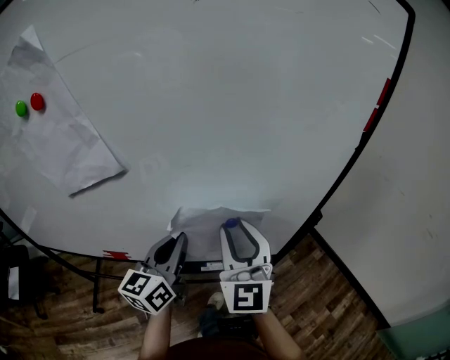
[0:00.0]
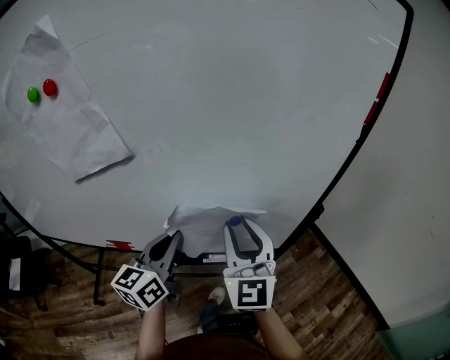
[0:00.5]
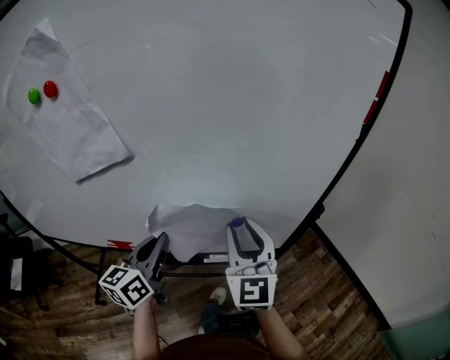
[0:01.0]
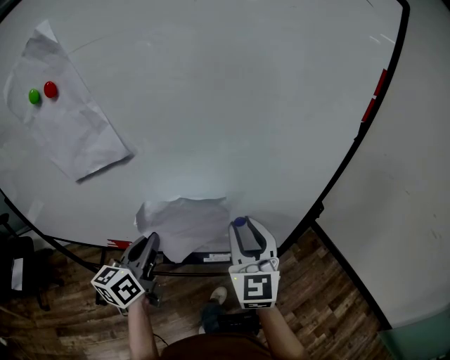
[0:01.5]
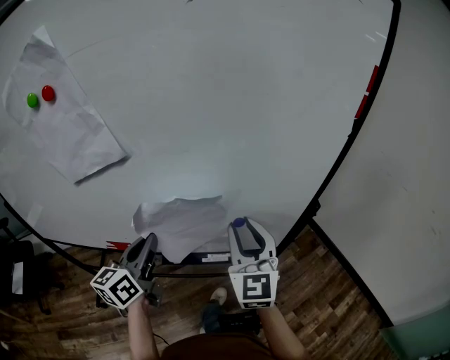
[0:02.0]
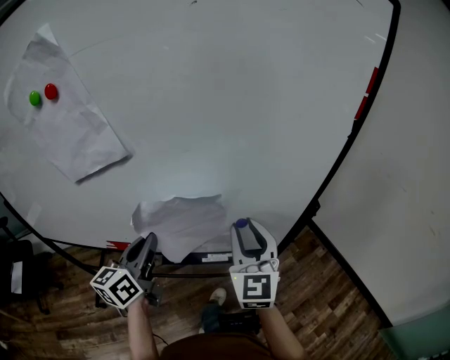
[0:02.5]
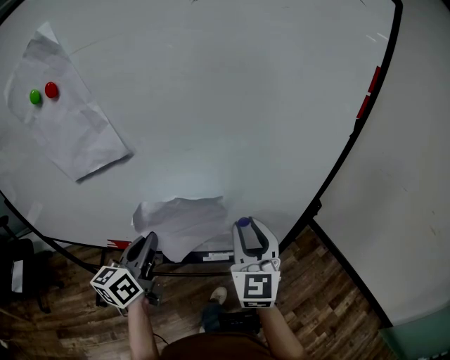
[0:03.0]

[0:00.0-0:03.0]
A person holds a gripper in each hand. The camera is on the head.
0:00.0 to 0:01.5: The left gripper shifts some 5 cm to the left.
0:01.5 to 0:03.0: The grippers make only small movements.

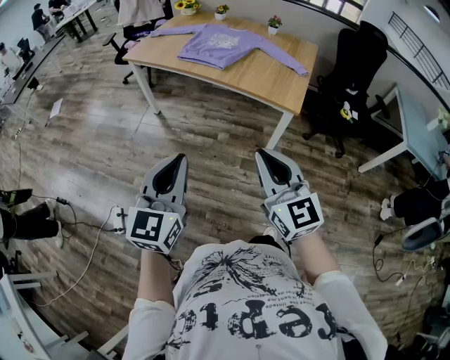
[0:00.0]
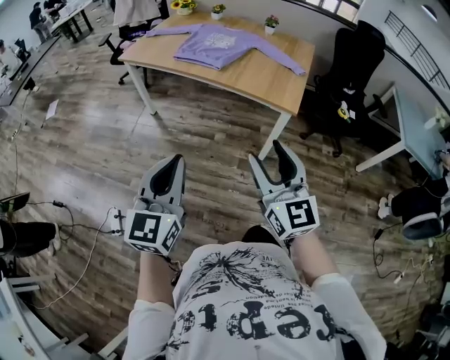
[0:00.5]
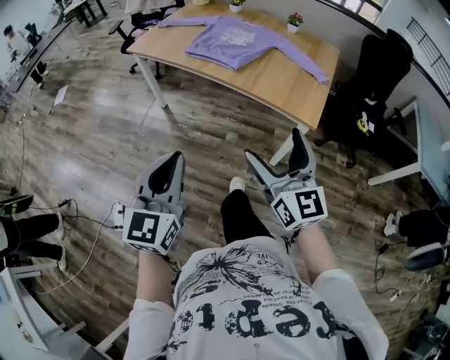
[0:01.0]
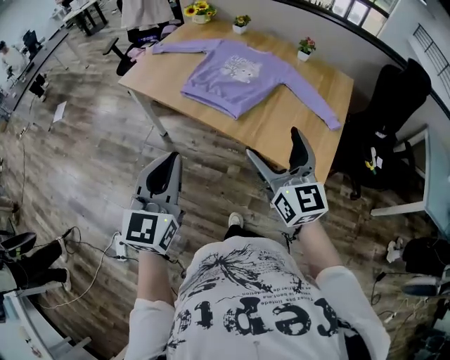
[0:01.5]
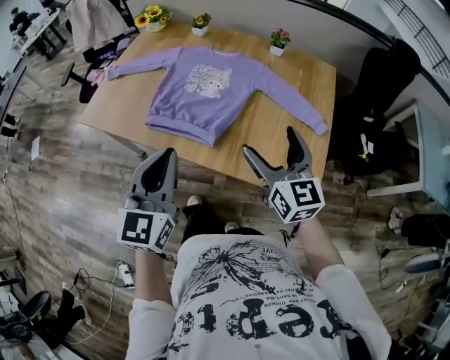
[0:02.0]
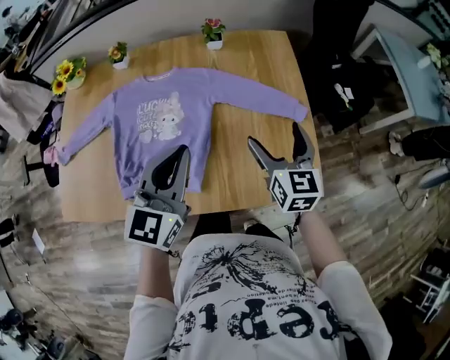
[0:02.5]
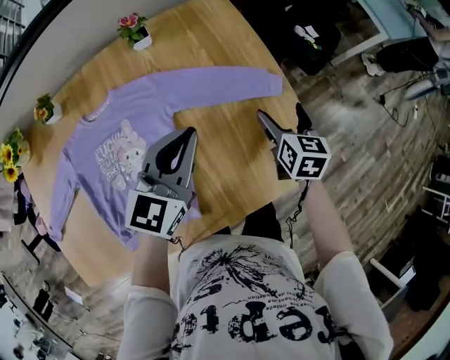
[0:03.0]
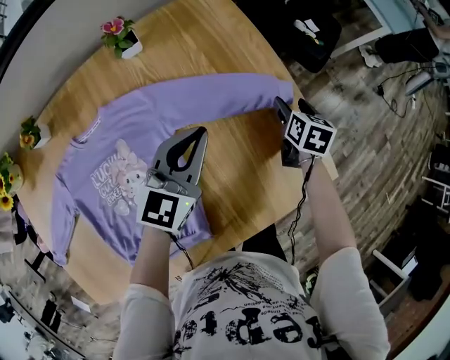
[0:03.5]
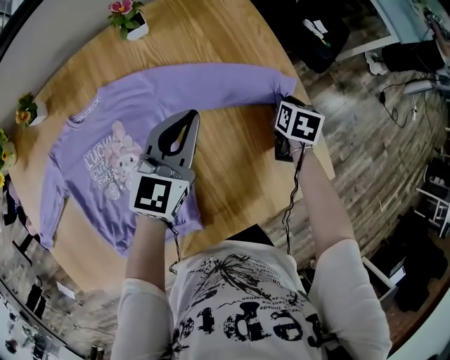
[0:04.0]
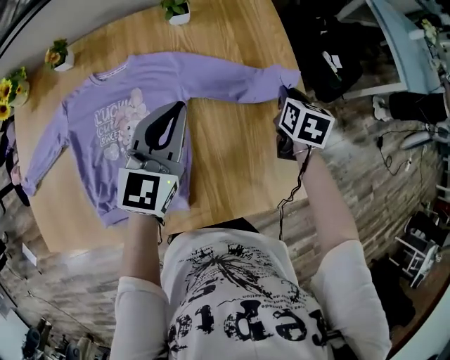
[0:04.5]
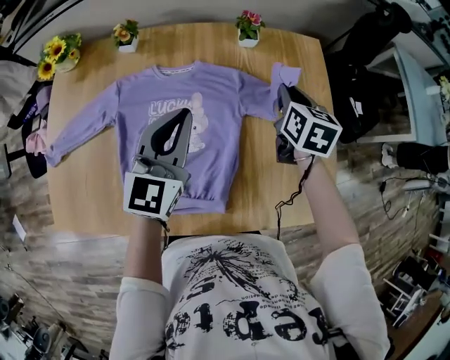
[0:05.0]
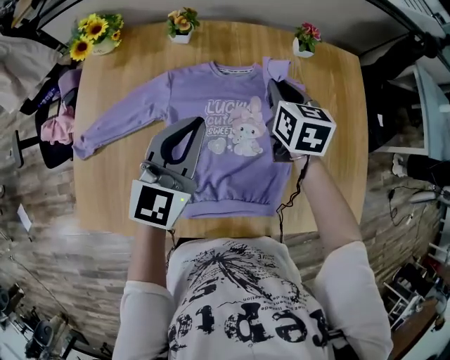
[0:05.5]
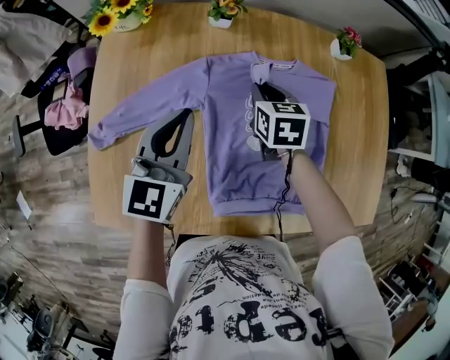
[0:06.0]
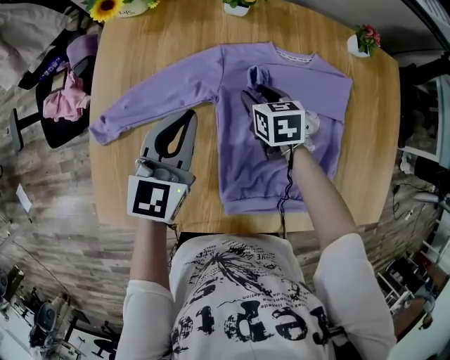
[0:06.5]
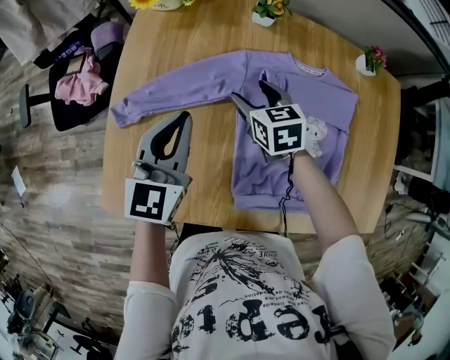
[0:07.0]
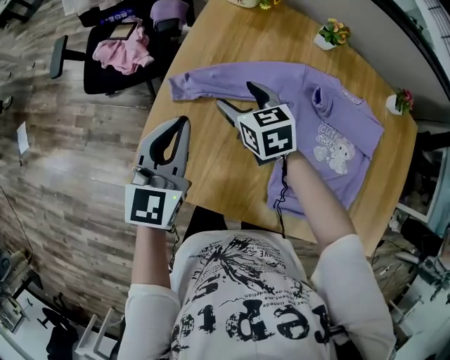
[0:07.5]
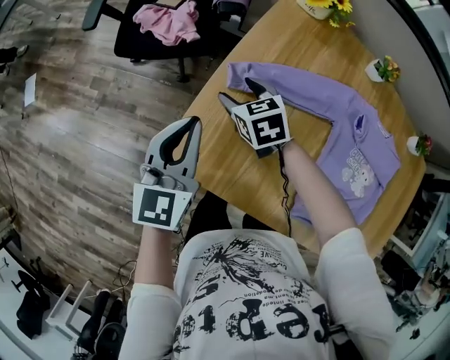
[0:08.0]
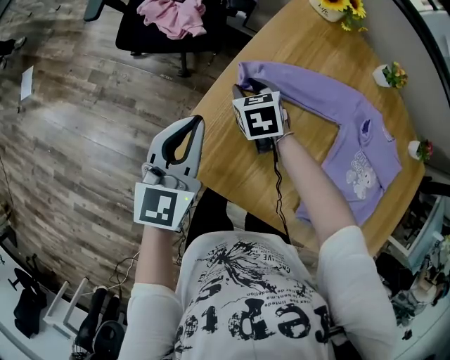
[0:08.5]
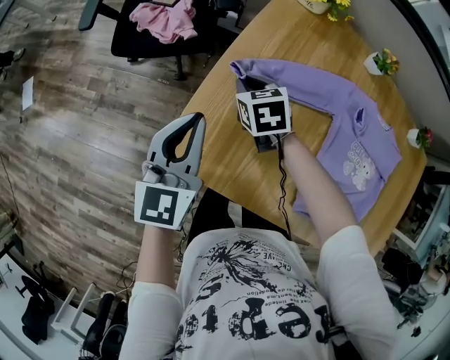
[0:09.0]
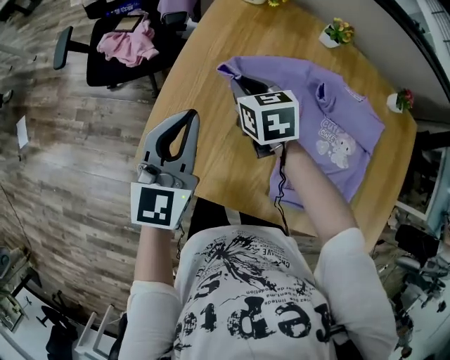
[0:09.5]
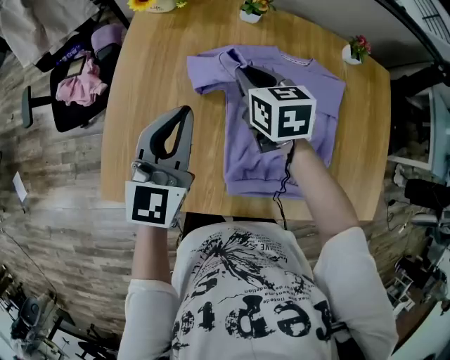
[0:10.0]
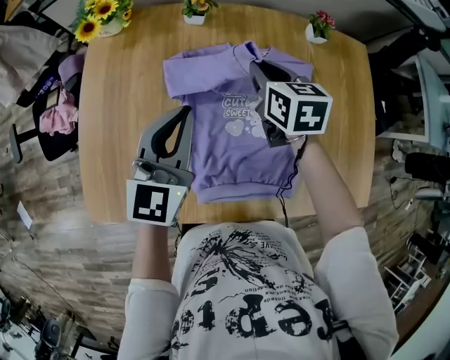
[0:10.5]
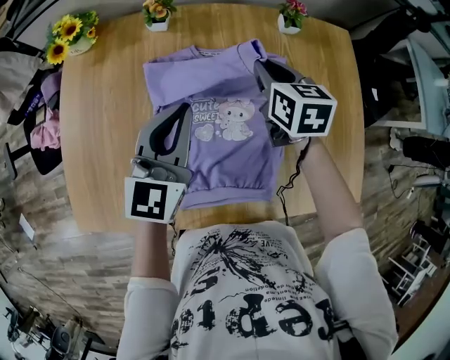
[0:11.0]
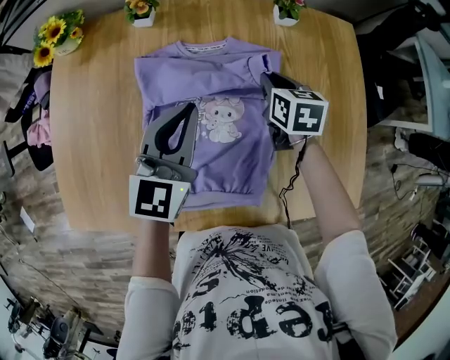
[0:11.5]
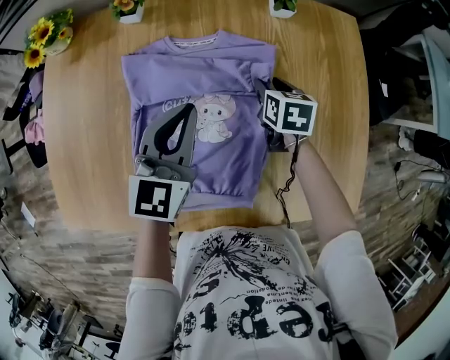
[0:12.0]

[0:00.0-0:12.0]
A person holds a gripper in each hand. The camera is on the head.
0:00.0 to 0:02.0: Both grippers are carried forward, about 60 cm. The right gripper opens up.
0:02.0 to 0:04.0: The left gripper changes place by about 50 cm, and swivels roughly 60 degrees, while the right gripper moves approximately 50 cm, tilts its fingers some 50 degrees downward, and closes up.
0:04.0 to 0:06.0: The pair of grippers is taken some 60 cm. The left gripper swivels some 30 degrees, while the right gripper swivels roughly 50 degrees.
0:06.0 to 0:08.0: The right gripper goes up and down, approximately 10 cm each way, reversing 2 times, rotates some 50 degrees, and opens its fingers. Meanwhile the left gripper changes place by about 35 cm, and swivels some 30 degrees.
0:08.0 to 0:10.0: The left gripper changes place by approximately 30 cm, and changes its angle by some 30 degrees. The right gripper changes place by approximately 35 cm, turns by roughly 40 degrees, and closes.
0:10.0 to 0:12.0: Both grippers travel together to the right, some 35 cm. The right gripper rotates some 30 degrees.

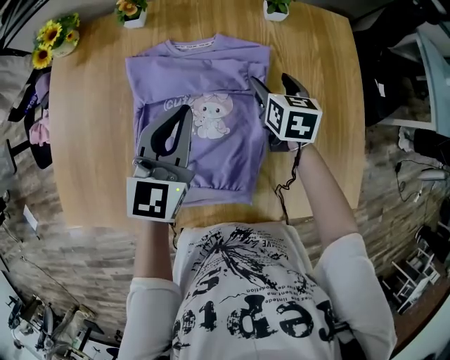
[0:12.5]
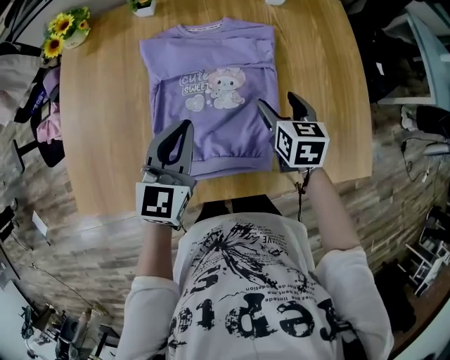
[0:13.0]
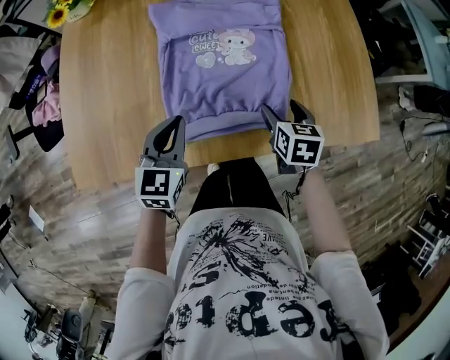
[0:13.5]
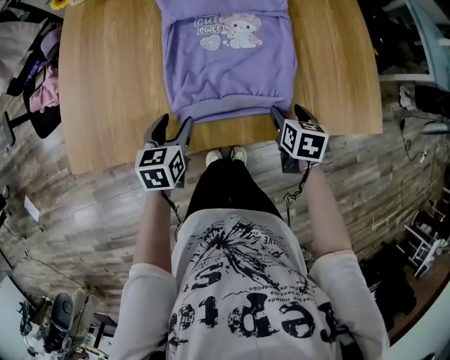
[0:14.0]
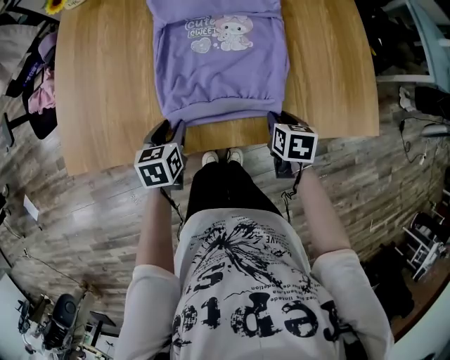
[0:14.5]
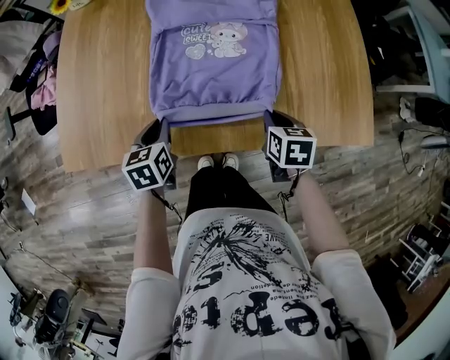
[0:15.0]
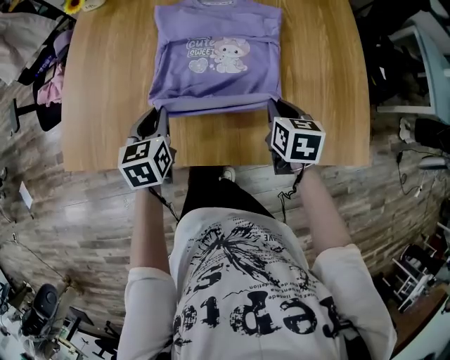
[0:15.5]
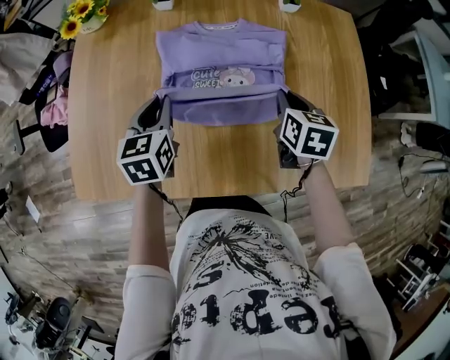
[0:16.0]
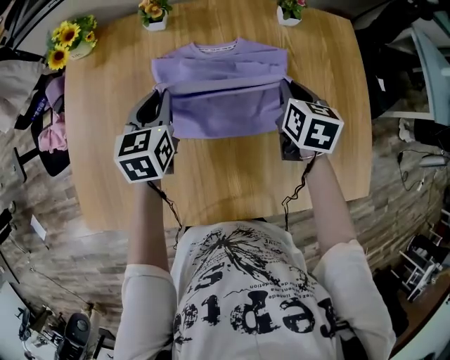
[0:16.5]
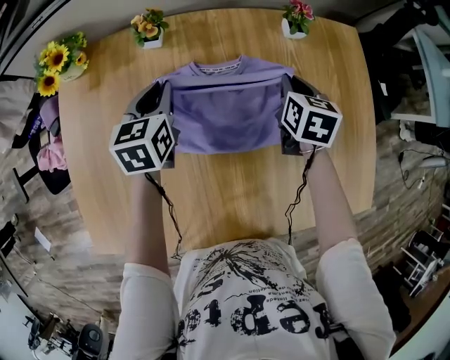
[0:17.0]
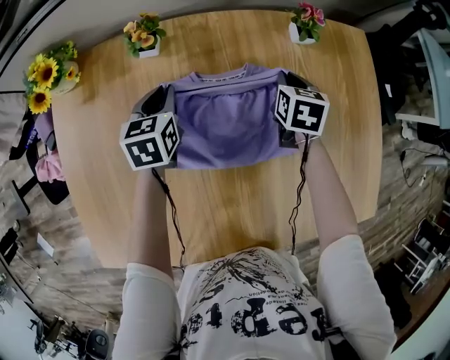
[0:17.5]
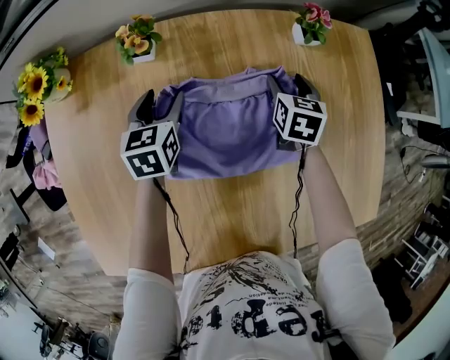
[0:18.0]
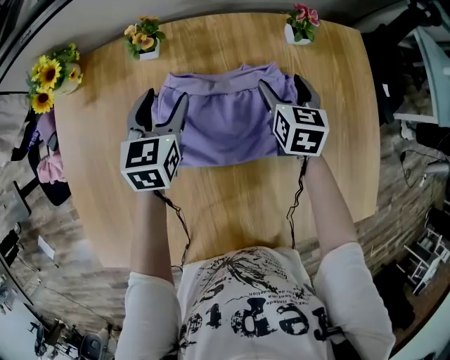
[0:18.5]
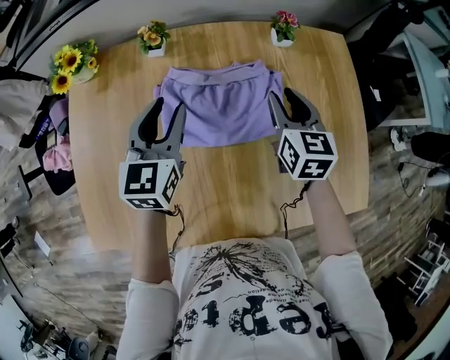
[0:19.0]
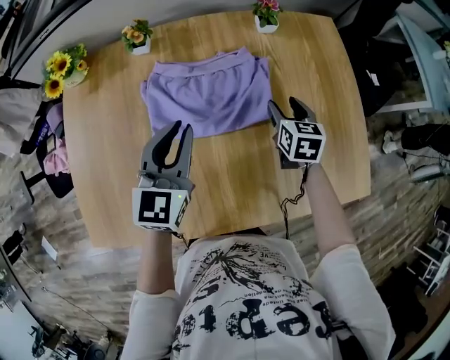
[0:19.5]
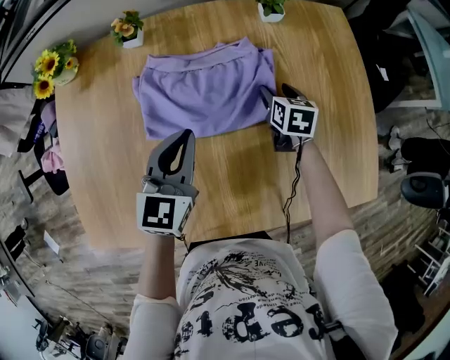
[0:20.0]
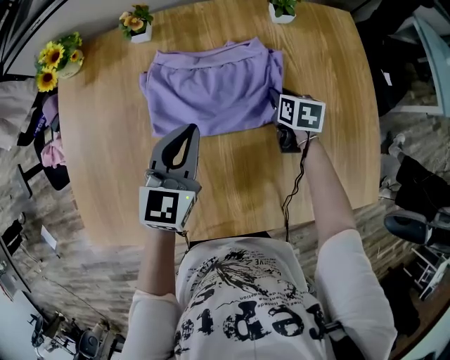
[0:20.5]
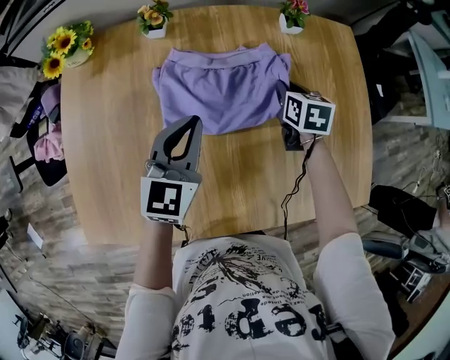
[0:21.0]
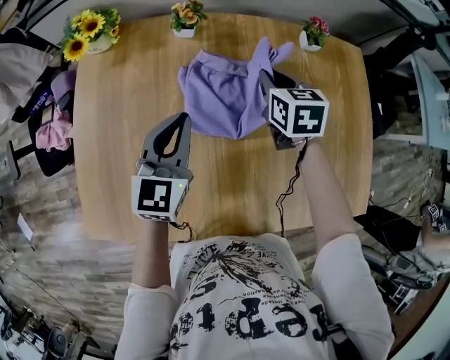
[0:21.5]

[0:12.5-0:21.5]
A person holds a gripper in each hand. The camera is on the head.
0:12.5 to 0:14.5: The left gripper shifts approximately 35 cm backward, downward and to the left, tips its fingers downward by roughly 40 degrees, and opens up, while the right gripper shifts approximately 35 cm backward, rotates roughly 20 degrees, and closes its fingers.
0:14.5 to 0:17.0: Both grippers are carried forward, roughly 40 cm. The left gripper closes up.
0:17.0 to 0:19.5: The left gripper is displaced backward, to the right and upward by some 20 cm, swivels about 30 degrees, and opens, then closes once more, while the right gripper goes about 10 cm backward and to the right, and opens its fingers.
0:19.5 to 0:21.5: The left gripper heads to the left, covering some 10 cm; the right gripper is displaced to the left by about 20 cm, and closes its fingers.

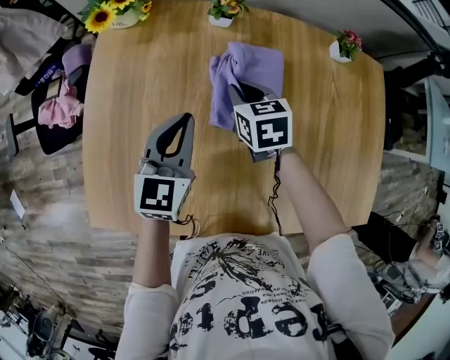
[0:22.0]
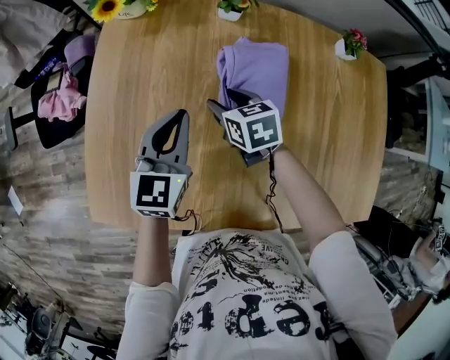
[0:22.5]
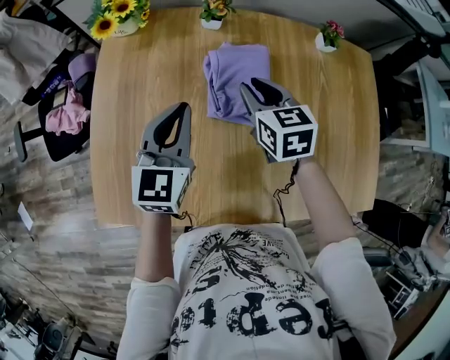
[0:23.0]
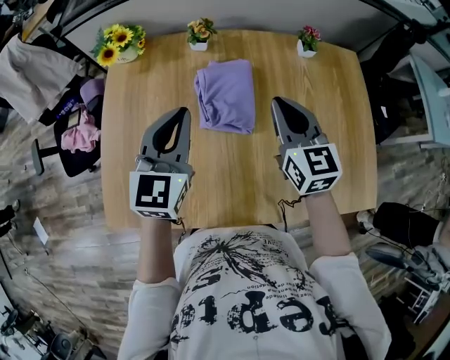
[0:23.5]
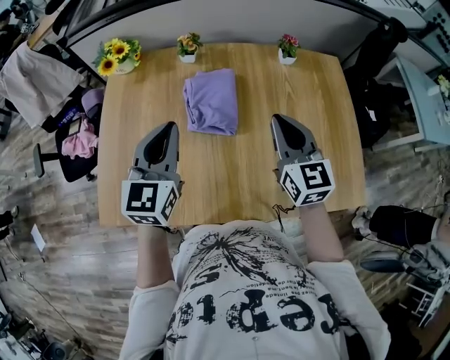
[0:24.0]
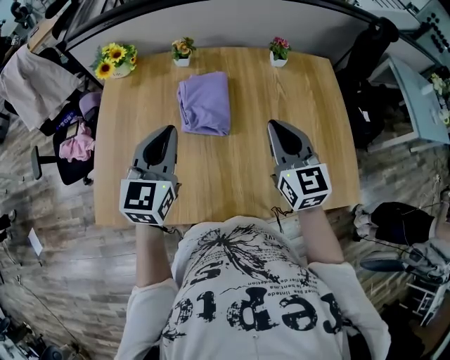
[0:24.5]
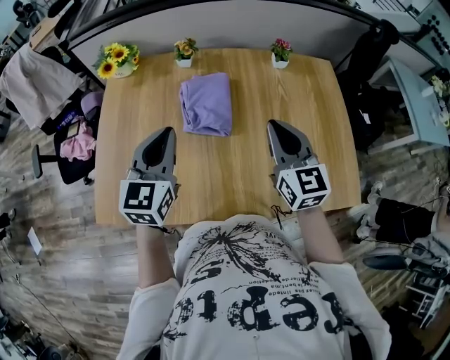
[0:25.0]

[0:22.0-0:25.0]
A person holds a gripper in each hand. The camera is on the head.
0:22.0 to 0:23.5: The right gripper moves upward, backward and to the right, roughly 25 cm, and rotates approximately 30 degrees, while the left gripper heads upward, covering about 15 cm.
0:23.5 to 0:25.0: The right gripper goes some 10 cm backward and to the right. The left gripper travels backward by roughly 10 cm.
